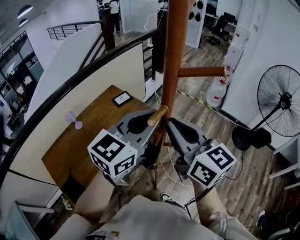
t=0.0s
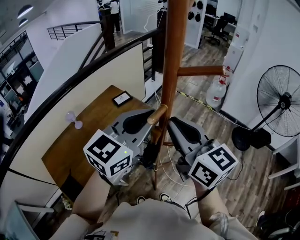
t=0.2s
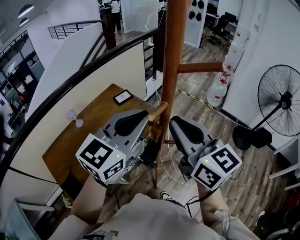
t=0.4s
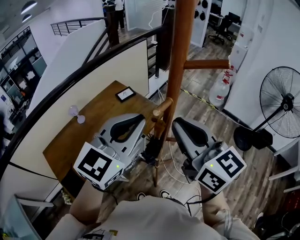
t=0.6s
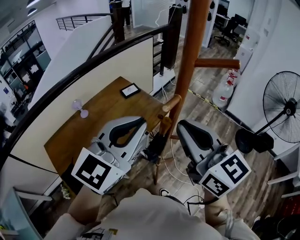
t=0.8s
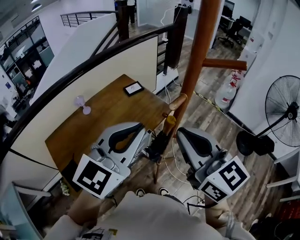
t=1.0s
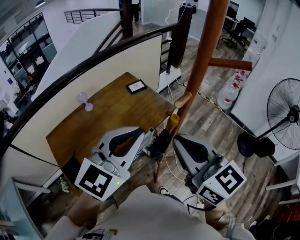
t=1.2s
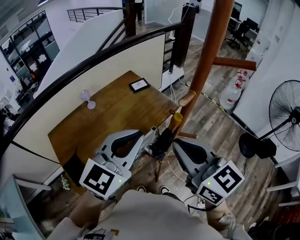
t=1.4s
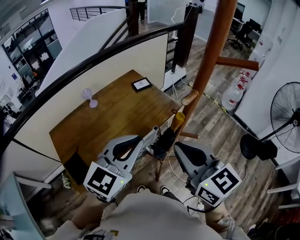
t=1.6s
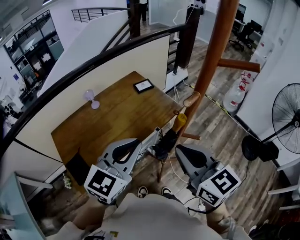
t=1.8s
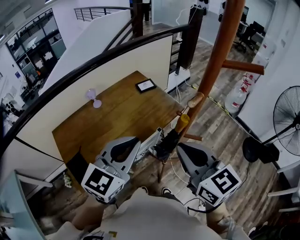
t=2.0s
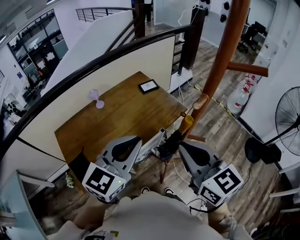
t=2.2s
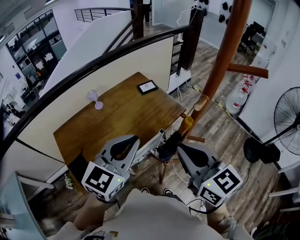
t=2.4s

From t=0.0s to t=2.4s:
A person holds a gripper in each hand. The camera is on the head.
From t=0.0s to t=1.2s: The right gripper goes roughly 10 cm backward. The left gripper travels to the left and backward by roughly 15 cm.
From t=1.2s to t=2.4s: The left gripper goes some 10 cm to the left and downward.

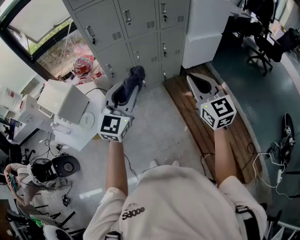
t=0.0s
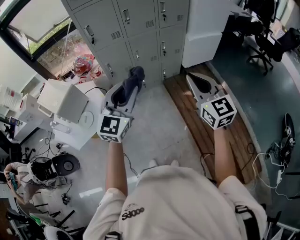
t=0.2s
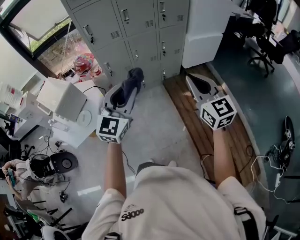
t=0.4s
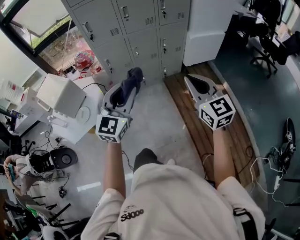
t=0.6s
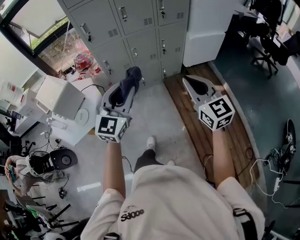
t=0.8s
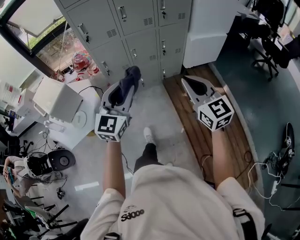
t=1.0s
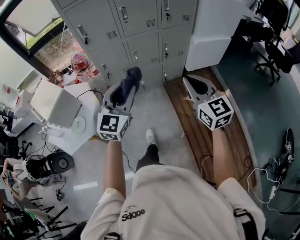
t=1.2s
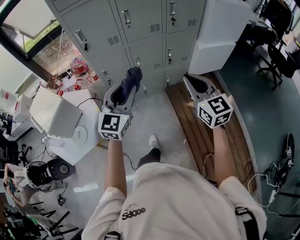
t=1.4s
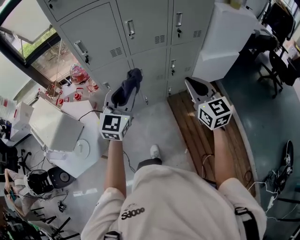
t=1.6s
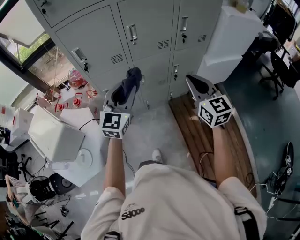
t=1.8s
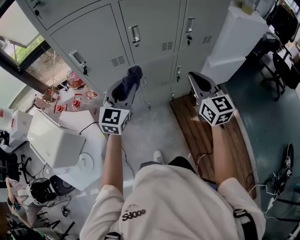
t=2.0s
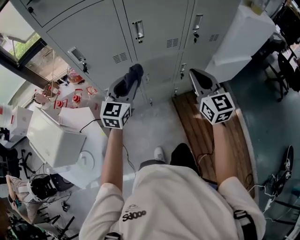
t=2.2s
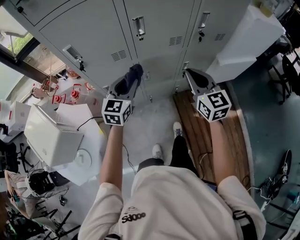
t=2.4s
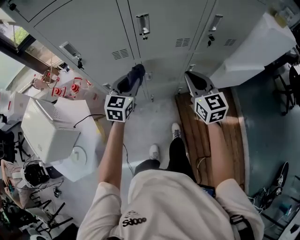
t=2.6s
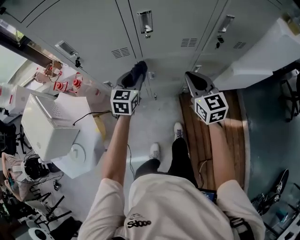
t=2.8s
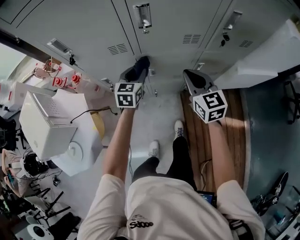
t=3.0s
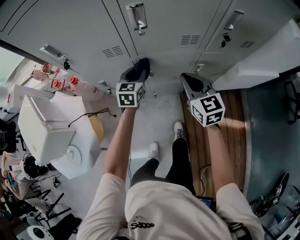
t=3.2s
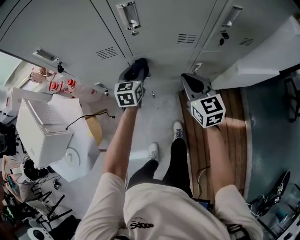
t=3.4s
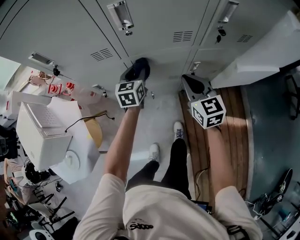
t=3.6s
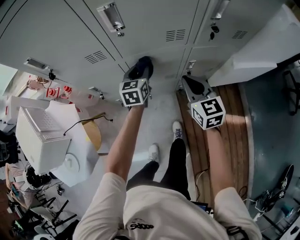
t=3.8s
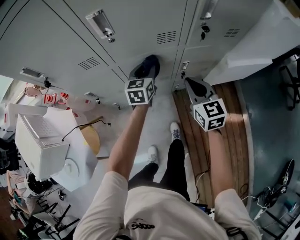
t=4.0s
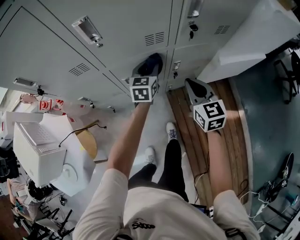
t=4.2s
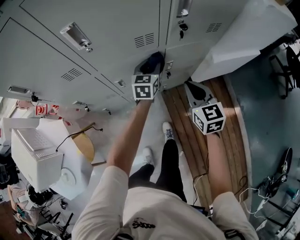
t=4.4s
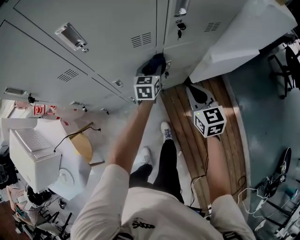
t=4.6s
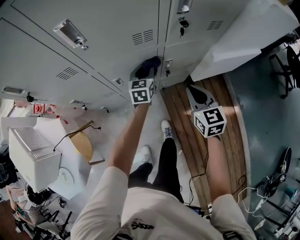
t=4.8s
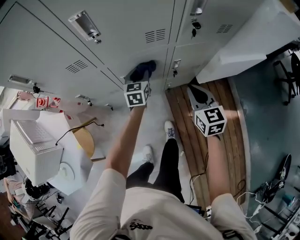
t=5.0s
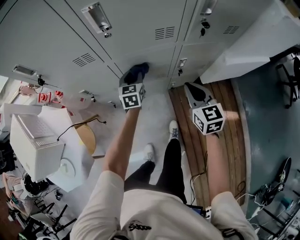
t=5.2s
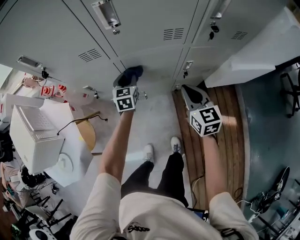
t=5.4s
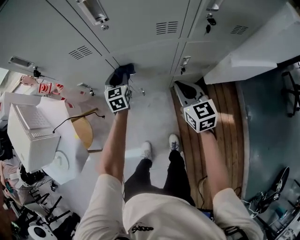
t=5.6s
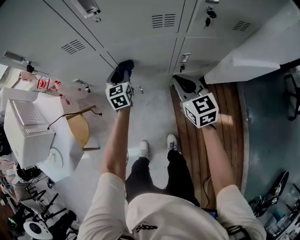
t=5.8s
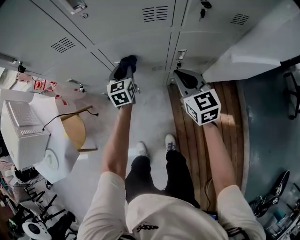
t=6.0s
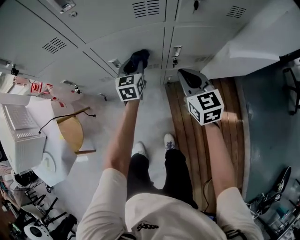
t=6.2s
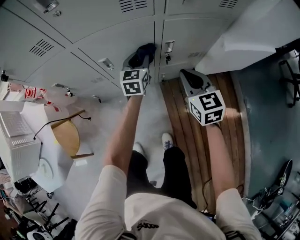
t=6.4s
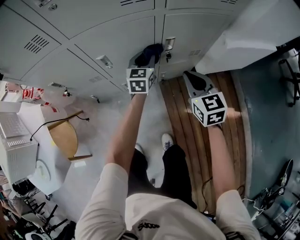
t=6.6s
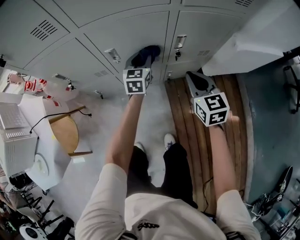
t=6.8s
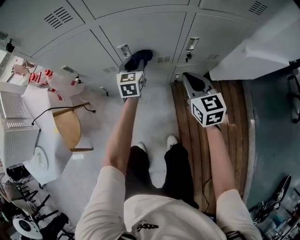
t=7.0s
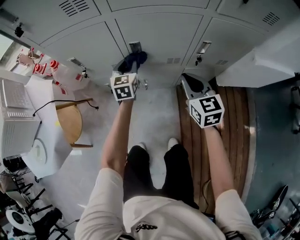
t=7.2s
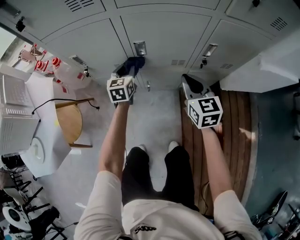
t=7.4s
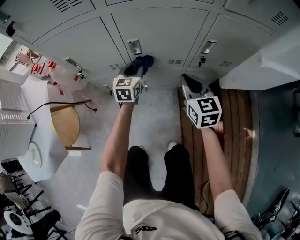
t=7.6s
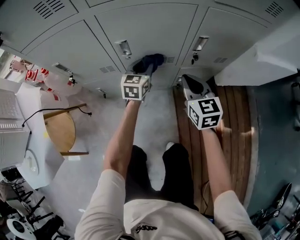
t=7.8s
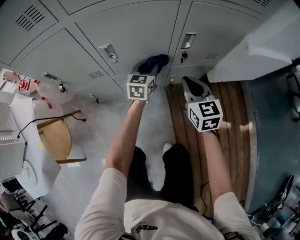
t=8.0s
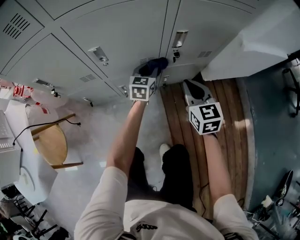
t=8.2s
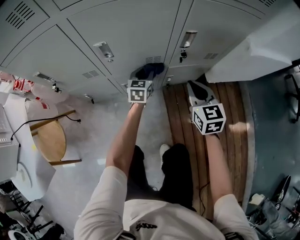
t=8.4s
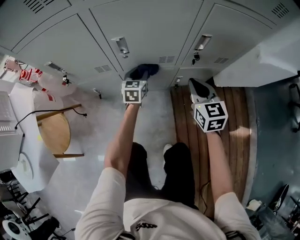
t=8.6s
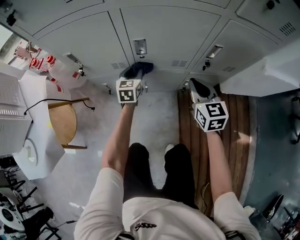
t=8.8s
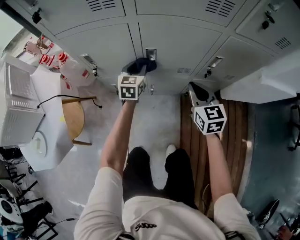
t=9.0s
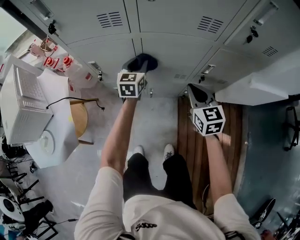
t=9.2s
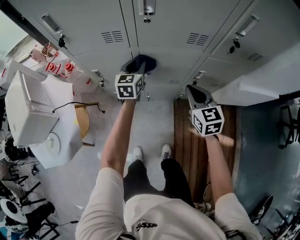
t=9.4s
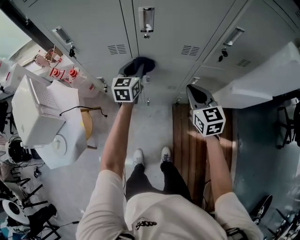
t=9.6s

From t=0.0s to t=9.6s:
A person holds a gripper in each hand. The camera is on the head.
From t=0.0s to t=1.6s: Both grippers move forward, roughly 30 cm.
From t=1.6s to t=3.2s: Both grippers travel together forward and downward, some 40 cm. The left gripper rotates about 30 degrees.
From t=3.2s to t=4.8s: The right gripper is displaced to the right and downward by roughly 20 cm. Meanwhile the left gripper shifts roughly 20 cm to the right.
From t=4.8s to t=6.4s: The grippers both shift downward by some 10 cm. The left gripper reaches some 20 cm to the left, then returns; the right gripper goes to the left and returns, roughly 10 cm each way.
From t=6.4s to t=8.0s: Both grippers travel together downward, some 15 cm. The left gripper moves roughly 25 cm to the left and comes back.
From t=8.0s to t=9.6s: The left gripper goes roughly 40 cm upward and to the left. The right gripper travels upward by about 30 cm.

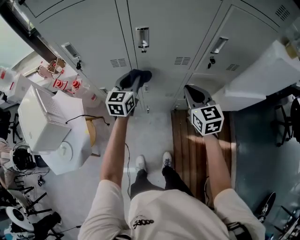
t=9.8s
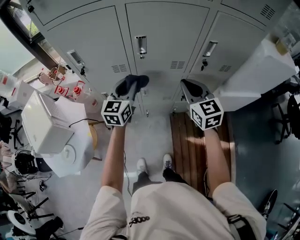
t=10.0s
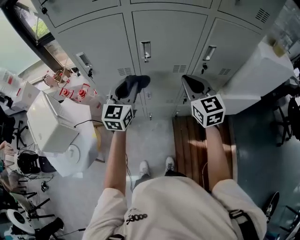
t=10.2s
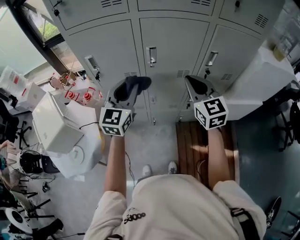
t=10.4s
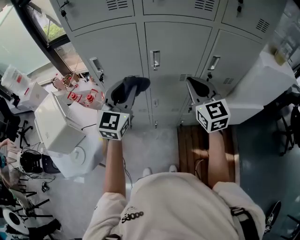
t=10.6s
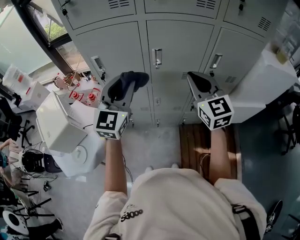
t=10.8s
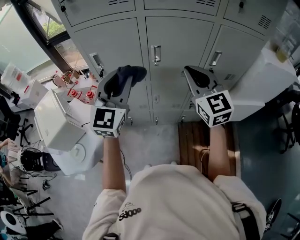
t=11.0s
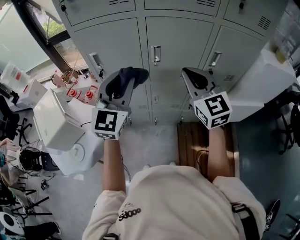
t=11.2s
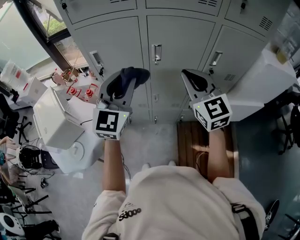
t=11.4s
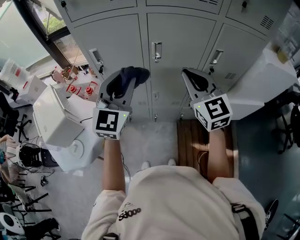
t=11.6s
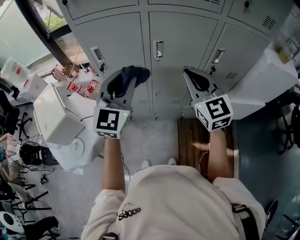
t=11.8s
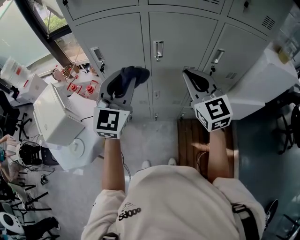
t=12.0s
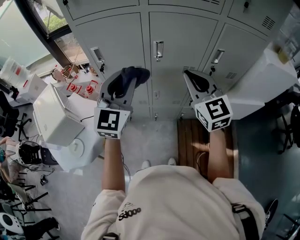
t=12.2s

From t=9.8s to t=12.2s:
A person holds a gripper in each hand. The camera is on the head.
From t=9.8s to t=11.0s: The left gripper shifts approximately 30 cm upward and backward, and changes its angle by about 30 degrees, while the right gripper heads upward, covering about 20 cm, and changes its angle by about 20 degrees.
From t=11.0s to t=12.2s: The grippers move only a little.

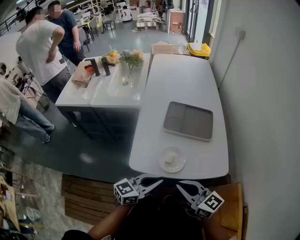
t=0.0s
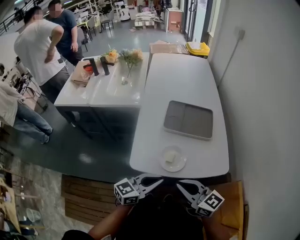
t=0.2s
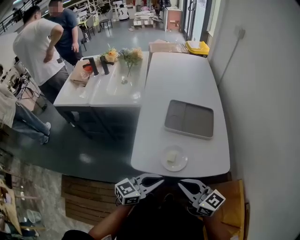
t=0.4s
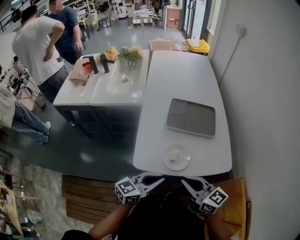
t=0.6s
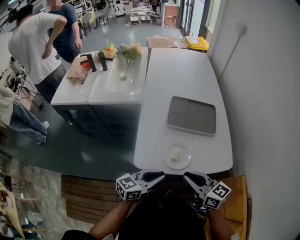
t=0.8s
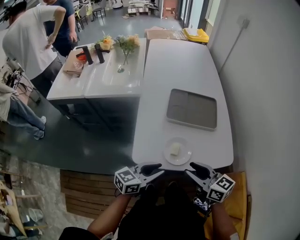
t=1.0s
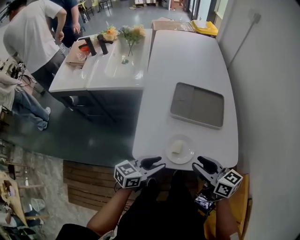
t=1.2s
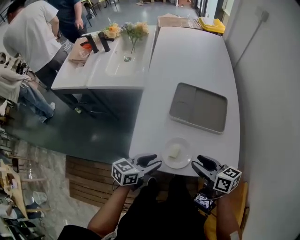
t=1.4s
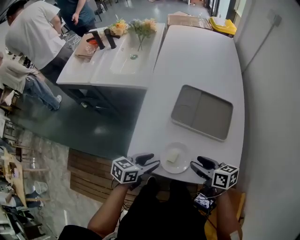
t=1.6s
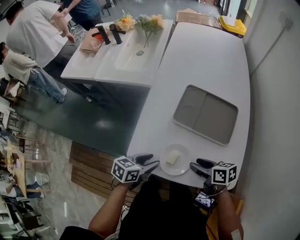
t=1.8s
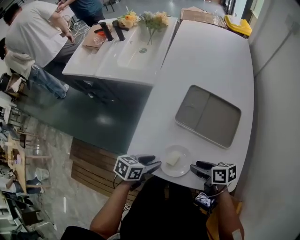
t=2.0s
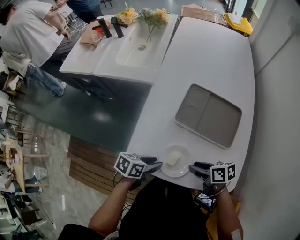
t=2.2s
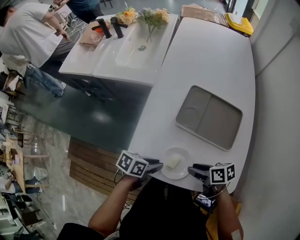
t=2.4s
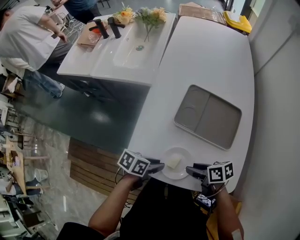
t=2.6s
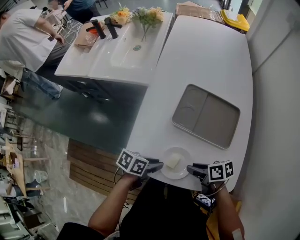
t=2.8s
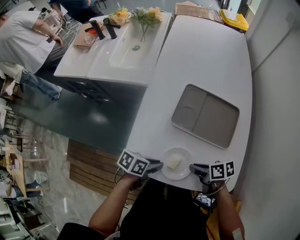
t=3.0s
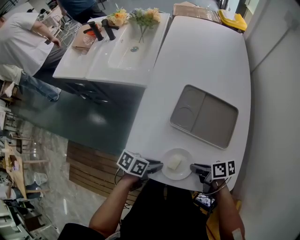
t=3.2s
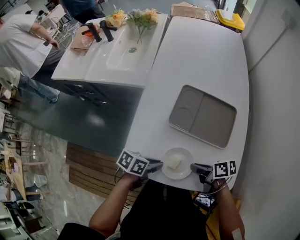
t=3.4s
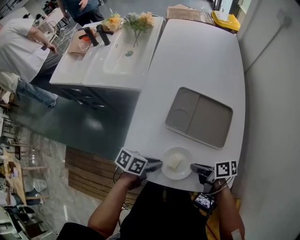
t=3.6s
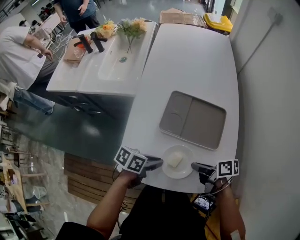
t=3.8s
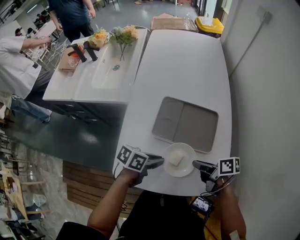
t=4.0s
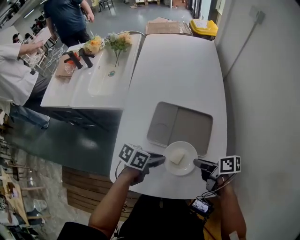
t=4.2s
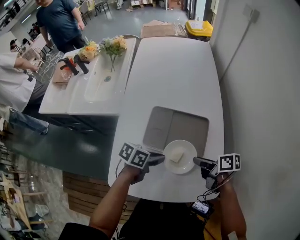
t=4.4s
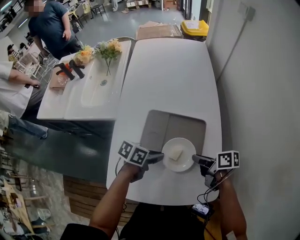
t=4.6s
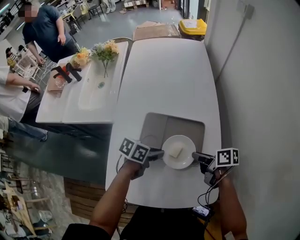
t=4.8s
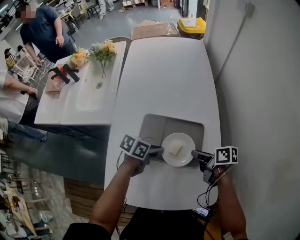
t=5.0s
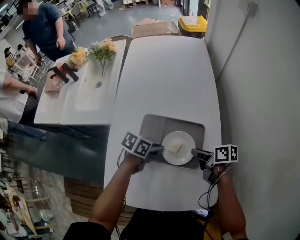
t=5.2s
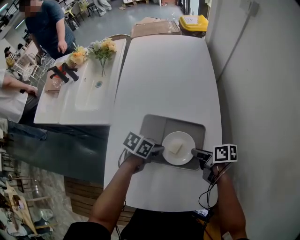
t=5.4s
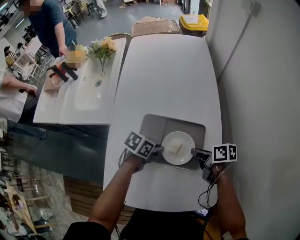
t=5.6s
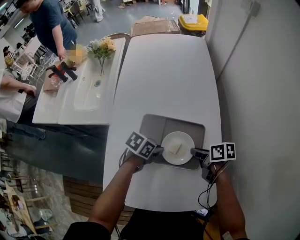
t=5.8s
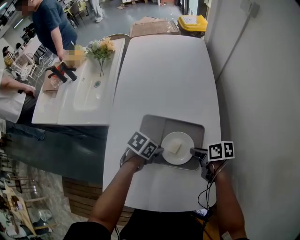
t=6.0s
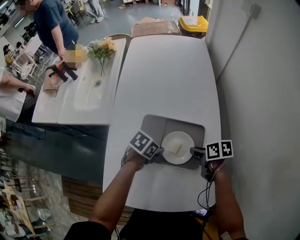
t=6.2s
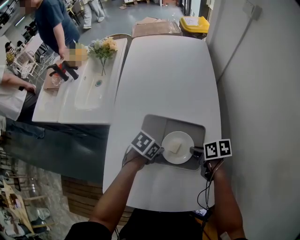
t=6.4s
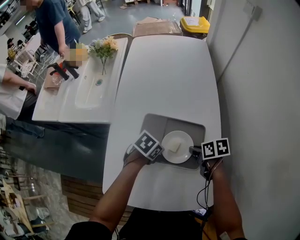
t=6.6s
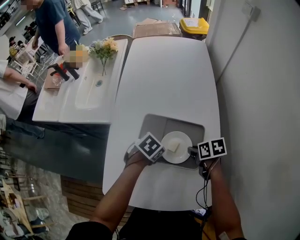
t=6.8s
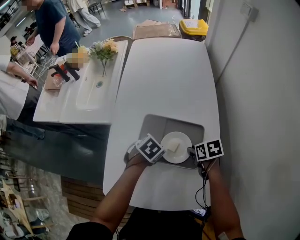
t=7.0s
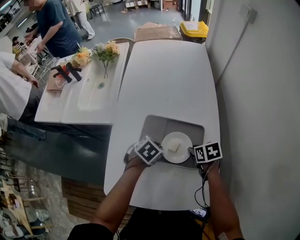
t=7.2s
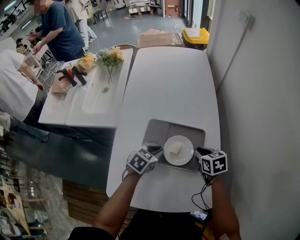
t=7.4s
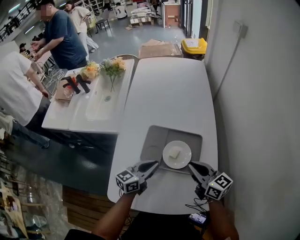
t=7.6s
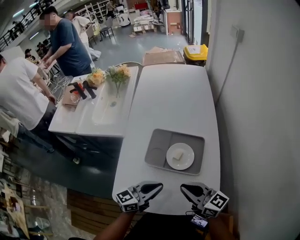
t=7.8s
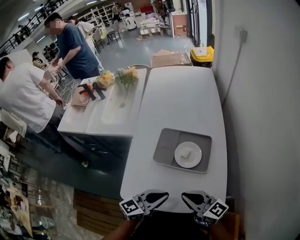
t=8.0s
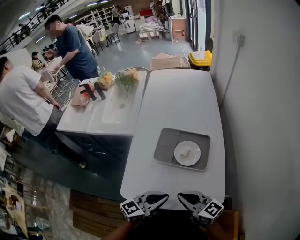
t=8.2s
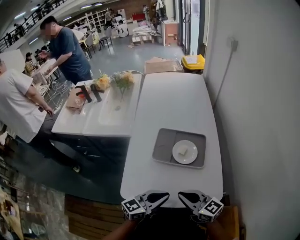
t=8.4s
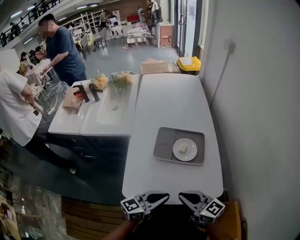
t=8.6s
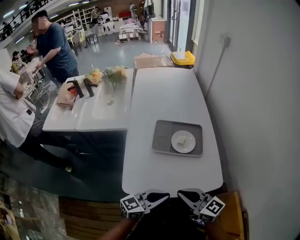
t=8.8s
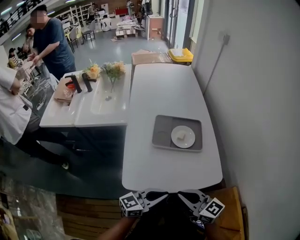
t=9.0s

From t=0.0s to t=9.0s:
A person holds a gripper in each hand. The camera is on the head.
From t=0.0s to t=1.6s: The right gripper shifts about 25 cm downward, forward and to the right, rotates about 40 degrees, and opens; the left gripper travels forward and downward by roughly 15 cm, swivels about 30 degrees, and opens its fingers.
From t=1.6s to t=3.0s: The grippers both shift downward by approximately 5 cm. The left gripper turns by about 30 degrees, and closes. Meanwhile the right gripper rotates roughly 30 degrees, and closes.
From t=3.0s to t=4.4s: The right gripper ends up some 15 cm from where it was, and swivels some 20 degrees, while the left gripper shifts by about 20 cm.
From t=4.4s to t=6.0s: The left gripper changes place by about 10 cm; the right gripper changes place by approximately 10 cm.
From t=6.0s to t=7.6s: The right gripper heads upward, covering some 15 cm, and points its fingers roughly 40 degrees further upward. Meanwhile the left gripper goes roughly 10 cm upward, and tilts its fingers some 40 degrees upward.
From t=7.6s to t=9.0s: The left gripper heads backward, covering about 30 cm, and swivels about 30 degrees, while the right gripper shifts some 30 cm backward and to the left.
